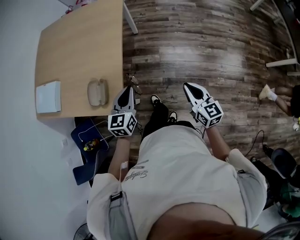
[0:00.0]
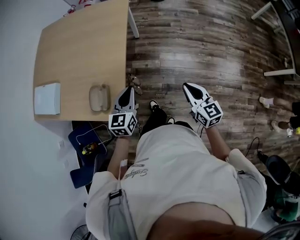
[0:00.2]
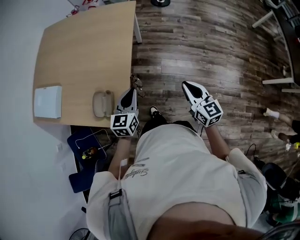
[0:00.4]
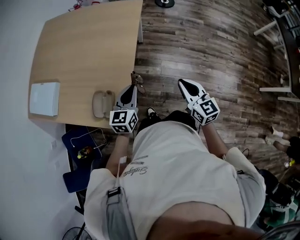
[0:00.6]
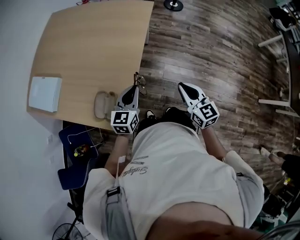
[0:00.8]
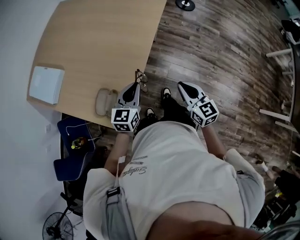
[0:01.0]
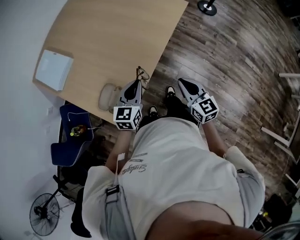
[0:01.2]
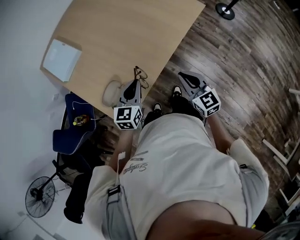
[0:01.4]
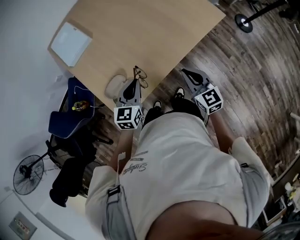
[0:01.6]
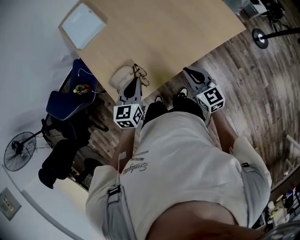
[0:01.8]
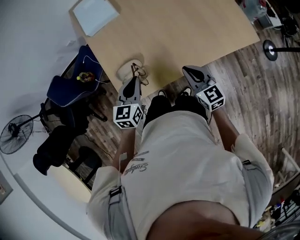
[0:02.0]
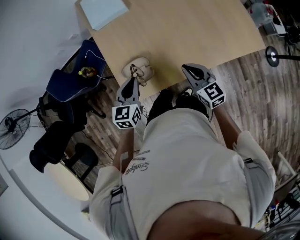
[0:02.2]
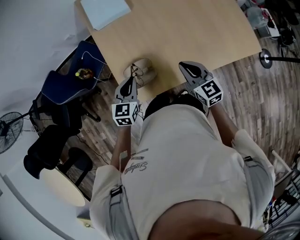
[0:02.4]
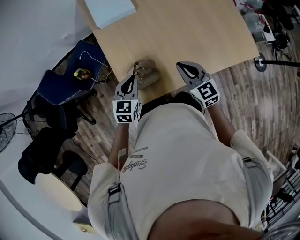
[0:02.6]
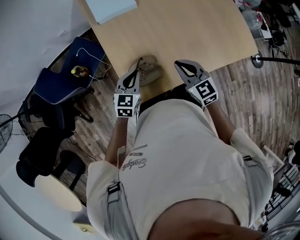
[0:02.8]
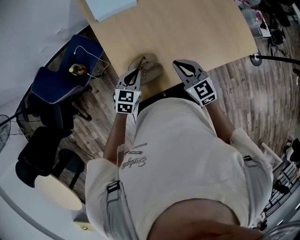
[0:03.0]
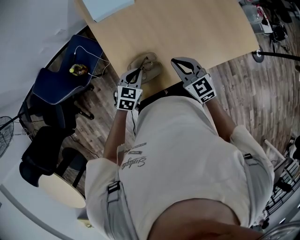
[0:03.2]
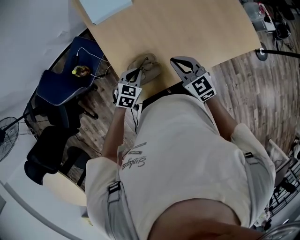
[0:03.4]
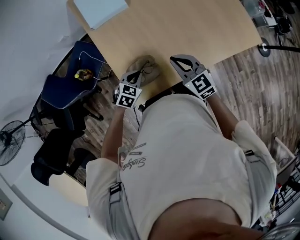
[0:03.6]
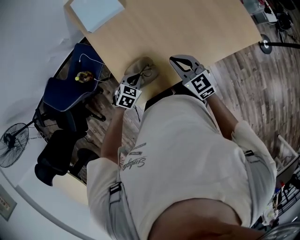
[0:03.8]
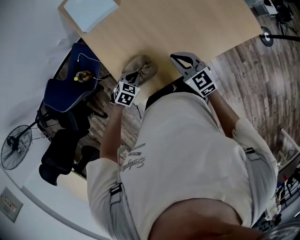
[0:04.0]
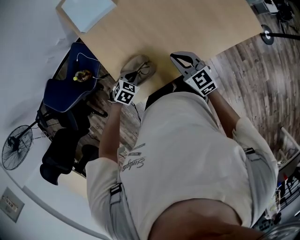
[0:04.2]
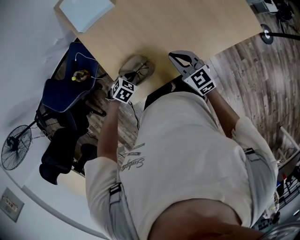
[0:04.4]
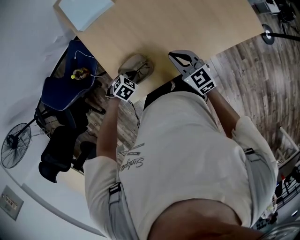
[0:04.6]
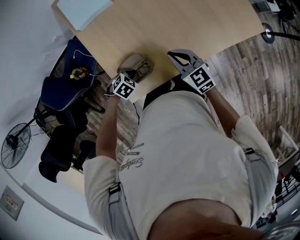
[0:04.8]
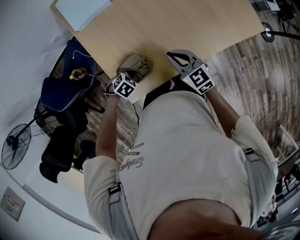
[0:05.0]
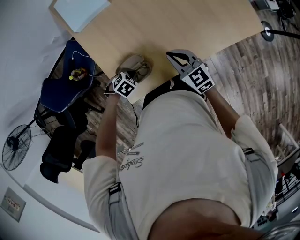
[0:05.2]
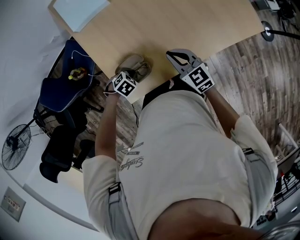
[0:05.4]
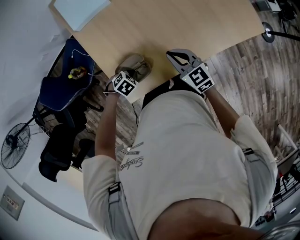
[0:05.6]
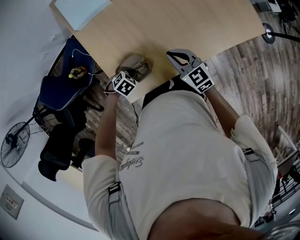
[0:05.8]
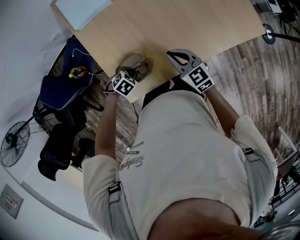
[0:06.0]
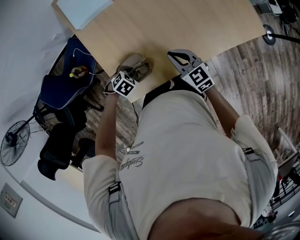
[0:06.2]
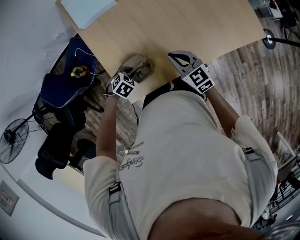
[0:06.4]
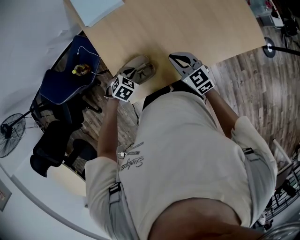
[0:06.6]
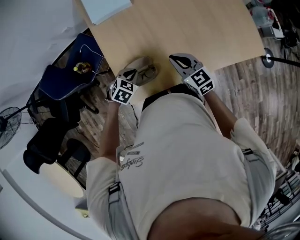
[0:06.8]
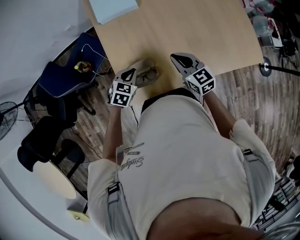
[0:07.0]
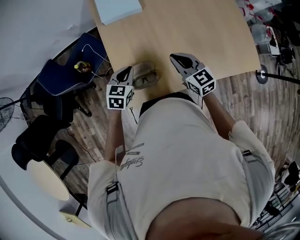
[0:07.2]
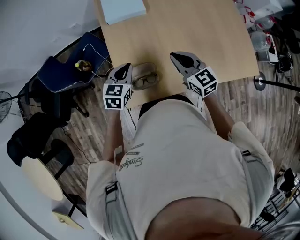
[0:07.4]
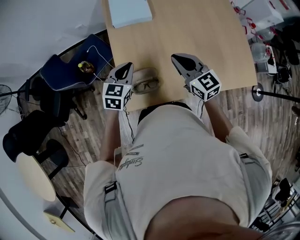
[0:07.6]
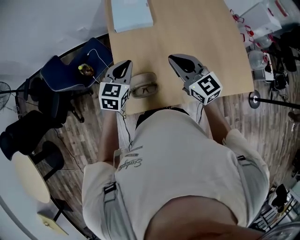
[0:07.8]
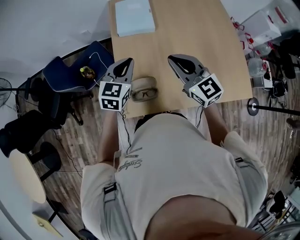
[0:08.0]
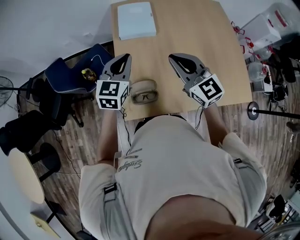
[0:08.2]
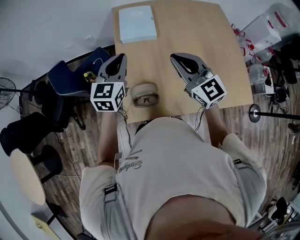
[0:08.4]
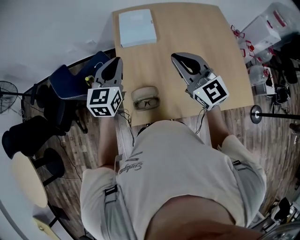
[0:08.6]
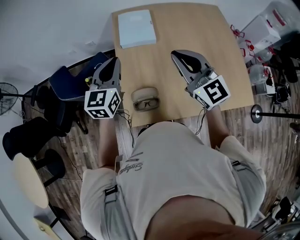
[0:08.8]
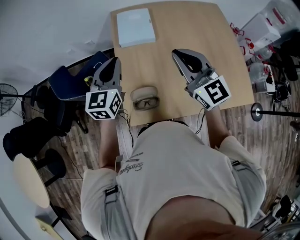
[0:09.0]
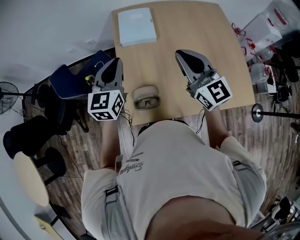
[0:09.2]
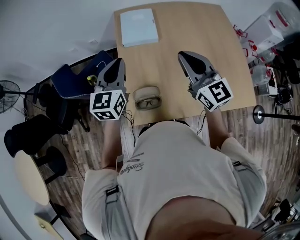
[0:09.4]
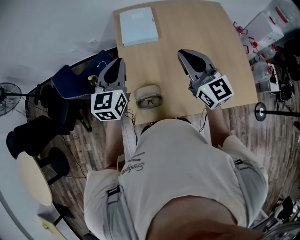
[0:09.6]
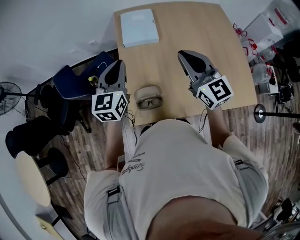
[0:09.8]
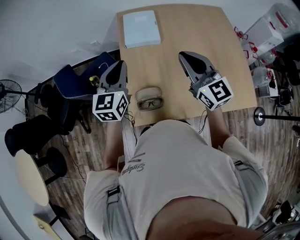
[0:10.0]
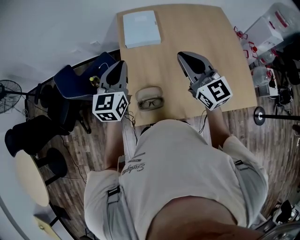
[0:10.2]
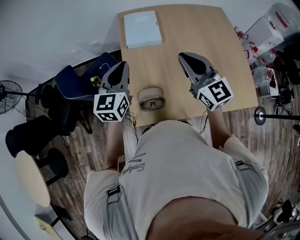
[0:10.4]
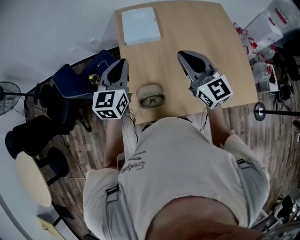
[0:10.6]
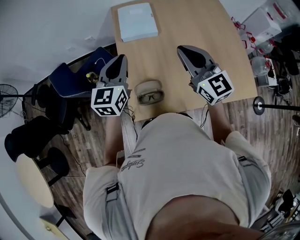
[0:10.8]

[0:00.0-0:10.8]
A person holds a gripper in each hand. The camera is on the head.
0.0 to 1.6 s: The left gripper changes place by approximately 25 cm, and turns by about 40 degrees; the right gripper moves some 40 cm, and swivels some 50 degrees.
1.6 to 3.0 s: The left gripper heads to the left, covering about 20 cm; the right gripper goes some 25 cm to the left and forward, and changes its angle by roughly 30 degrees.
3.0 to 4.6 s: The left gripper moves downward, approximately 10 cm, and points its fingers some 40 degrees further downward, while the right gripper shifts some 5 cm to the right.
4.6 to 6.2 s: The grippers stay close to where they were, moving slightly.
6.2 to 7.8 s: The grippers both shift upward by approximately 25 cm. The right gripper swivels about 20 degrees; the left gripper points its fingers approximately 50 degrees further upward.
7.8 to 9.2 s: Both grippers travel together upward, about 10 cm. The left gripper rotates approximately 20 degrees.
9.2 to 10.8 s: The grippers stay close to where they were, moving slightly.

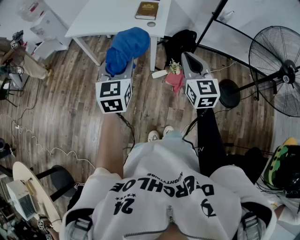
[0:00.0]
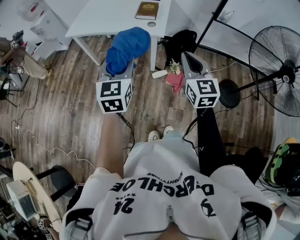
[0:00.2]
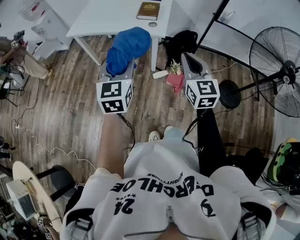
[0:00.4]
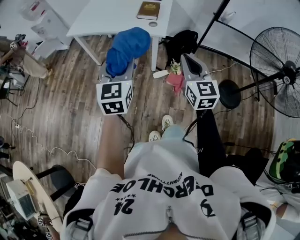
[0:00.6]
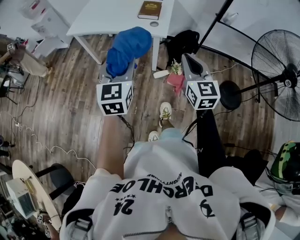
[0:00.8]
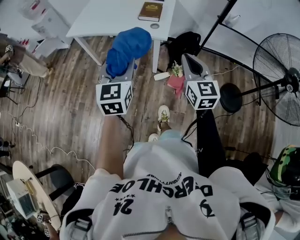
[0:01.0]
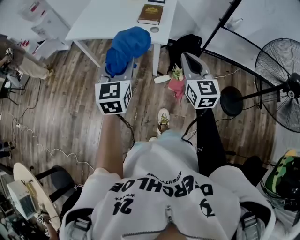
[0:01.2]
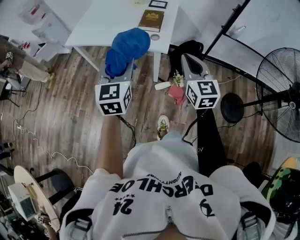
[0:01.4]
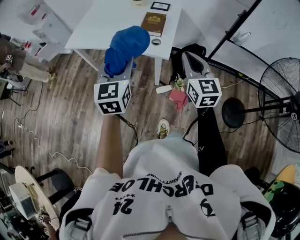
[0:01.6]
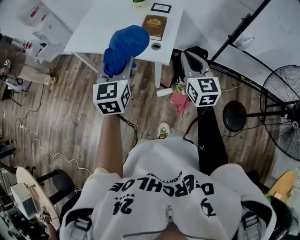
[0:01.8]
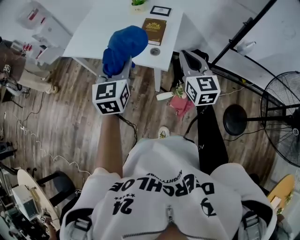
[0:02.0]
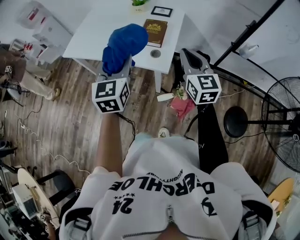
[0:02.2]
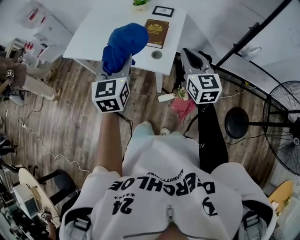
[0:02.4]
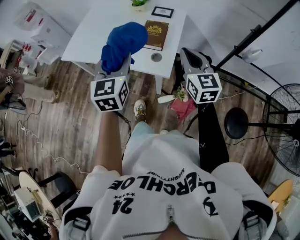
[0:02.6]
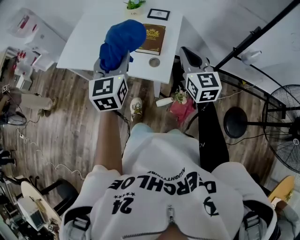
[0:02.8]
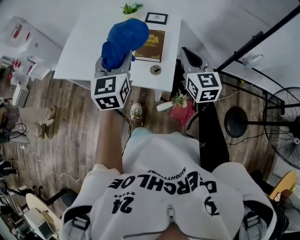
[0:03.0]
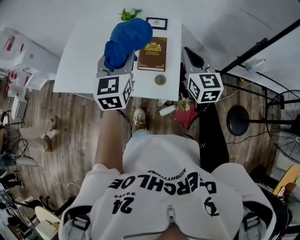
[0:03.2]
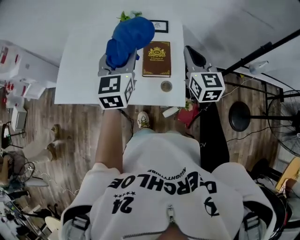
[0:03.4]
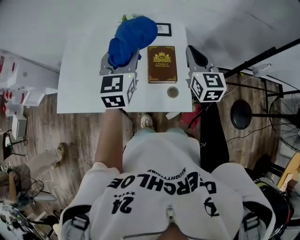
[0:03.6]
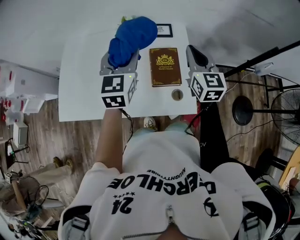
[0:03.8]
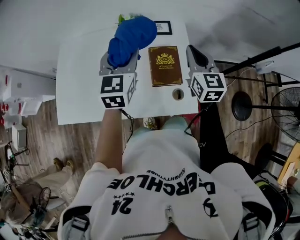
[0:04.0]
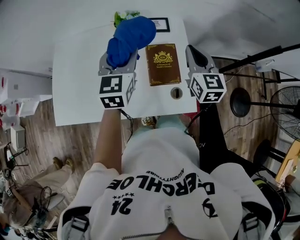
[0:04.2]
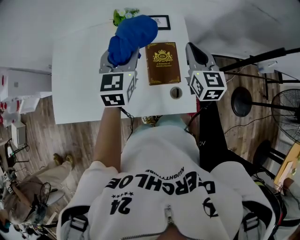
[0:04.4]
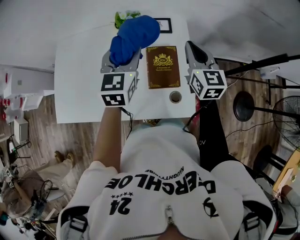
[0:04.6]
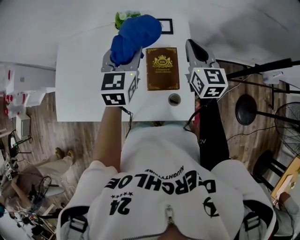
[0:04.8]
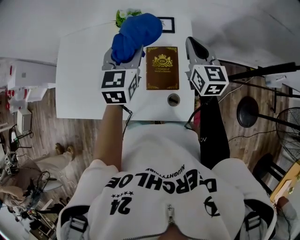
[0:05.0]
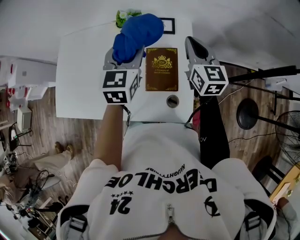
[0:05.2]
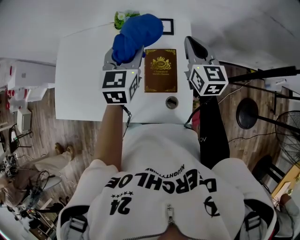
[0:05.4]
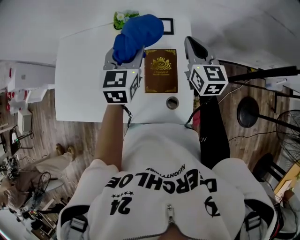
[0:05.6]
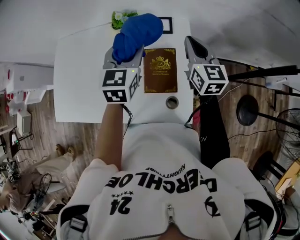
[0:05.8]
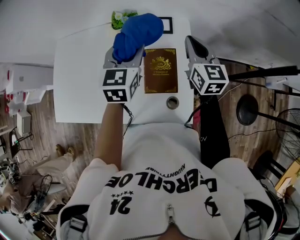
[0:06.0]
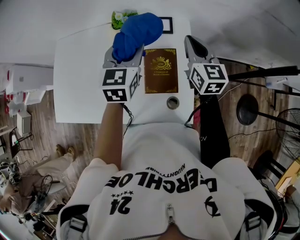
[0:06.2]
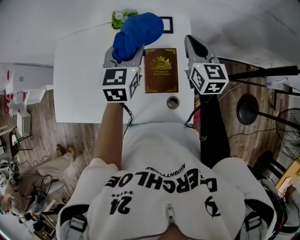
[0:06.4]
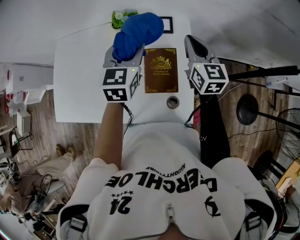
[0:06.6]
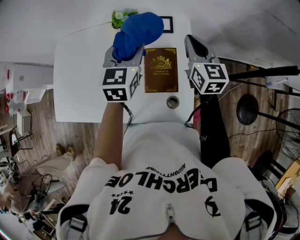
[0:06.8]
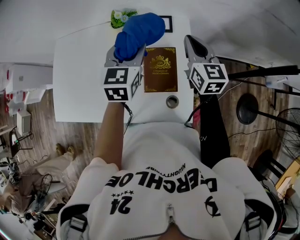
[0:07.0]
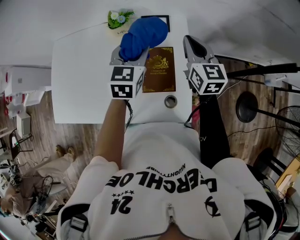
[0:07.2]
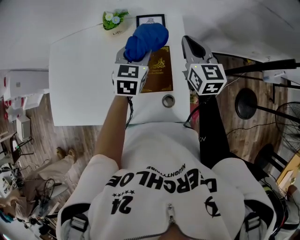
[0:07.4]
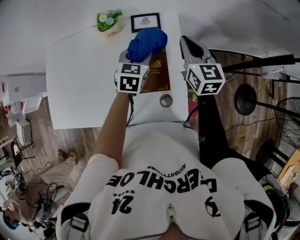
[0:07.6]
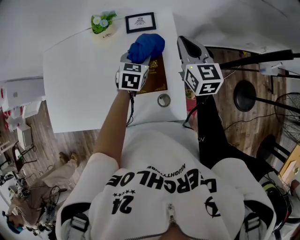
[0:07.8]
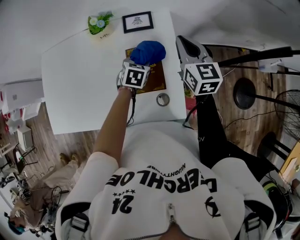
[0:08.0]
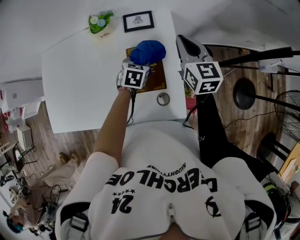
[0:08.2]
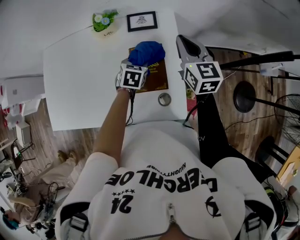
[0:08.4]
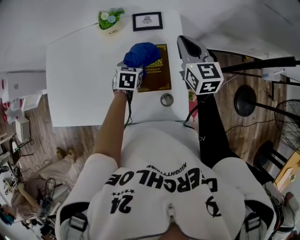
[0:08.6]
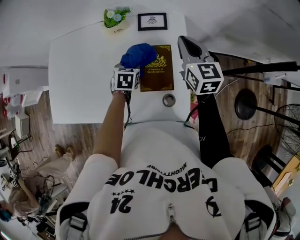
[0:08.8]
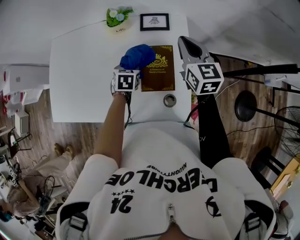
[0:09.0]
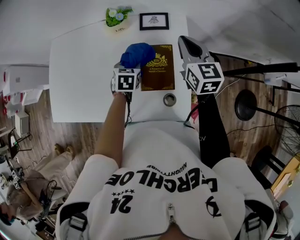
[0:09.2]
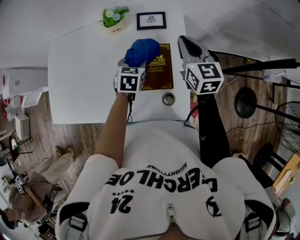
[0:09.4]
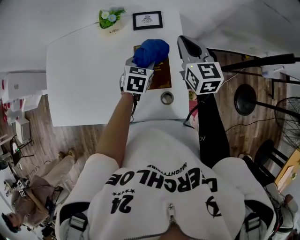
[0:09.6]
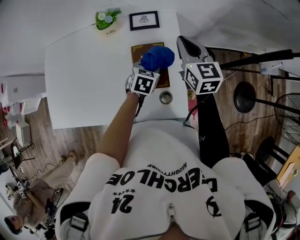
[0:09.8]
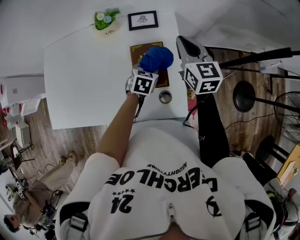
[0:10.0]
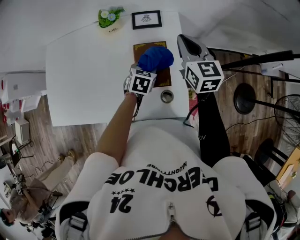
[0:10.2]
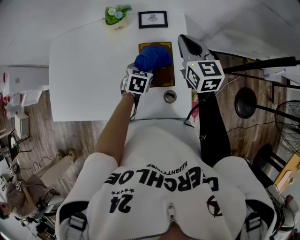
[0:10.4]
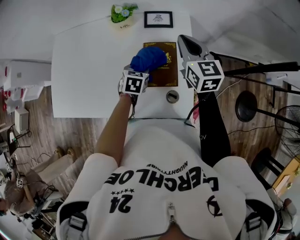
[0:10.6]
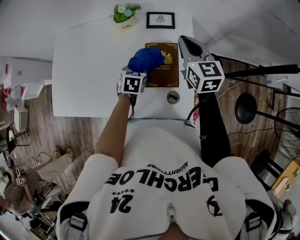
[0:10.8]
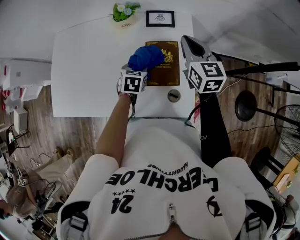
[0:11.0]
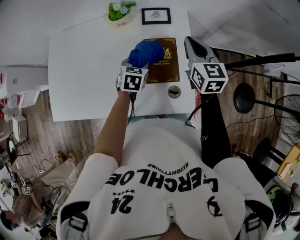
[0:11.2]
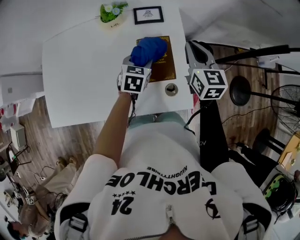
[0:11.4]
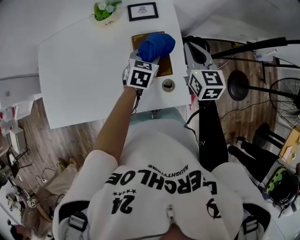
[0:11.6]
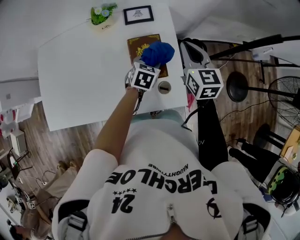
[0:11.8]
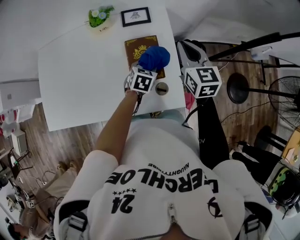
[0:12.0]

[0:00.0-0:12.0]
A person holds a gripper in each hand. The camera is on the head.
0.0 to 1.6 s: Both grippers travel together forward, some 20 cm.
1.6 to 3.0 s: The two grippers go about 25 cm forward.
3.0 to 4.4 s: The right gripper is displaced forward and to the left by about 20 cm. The left gripper moves forward, approximately 25 cm, and changes its angle by roughly 20 degrees.
4.4 to 6.0 s: The left gripper goes some 10 cm forward and to the right; the right gripper travels forward by roughly 10 cm.
6.0 to 7.6 s: The left gripper moves downward and to the right, some 15 cm.
7.6 to 9.0 s: The left gripper shifts some 15 cm downward and to the left, and changes its angle by approximately 20 degrees.
9.0 to 10.4 s: The left gripper moves to the right, roughly 10 cm.
10.4 to 12.0 s: The right gripper moves backward, some 5 cm, while the left gripper moves to the right, roughly 5 cm.

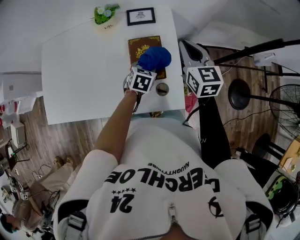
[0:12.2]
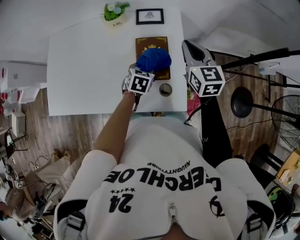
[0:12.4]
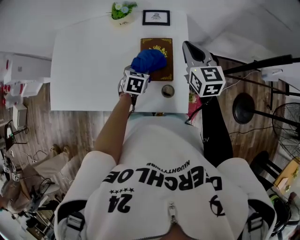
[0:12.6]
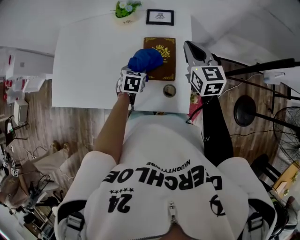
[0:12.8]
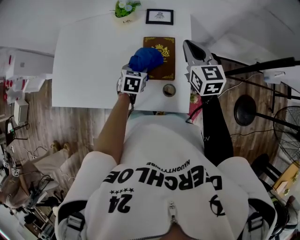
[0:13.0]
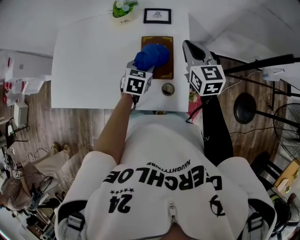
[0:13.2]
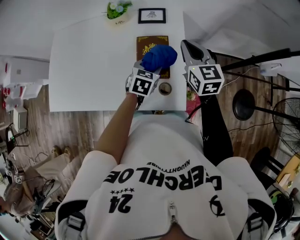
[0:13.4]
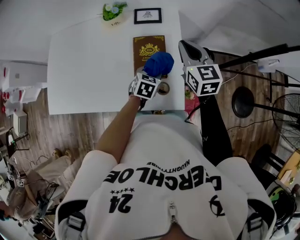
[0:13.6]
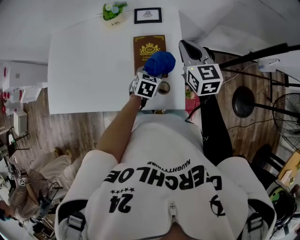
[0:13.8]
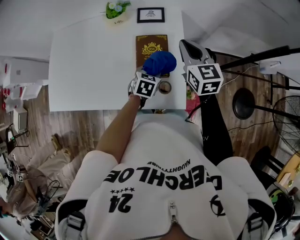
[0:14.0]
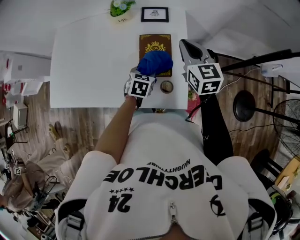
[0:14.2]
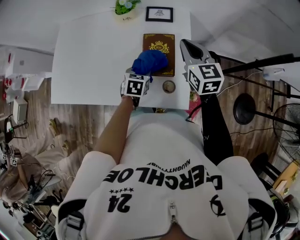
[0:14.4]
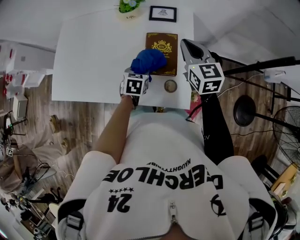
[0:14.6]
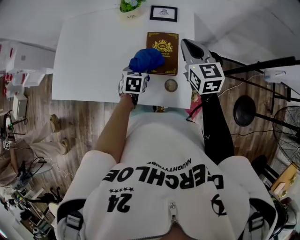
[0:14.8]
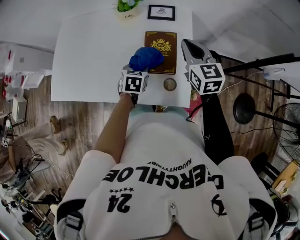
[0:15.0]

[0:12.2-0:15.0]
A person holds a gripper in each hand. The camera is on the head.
12.2 to 13.6 s: The left gripper goes to the left and returns, about 10 cm each way.
13.6 to 15.0 s: The left gripper moves to the left, some 10 cm.
